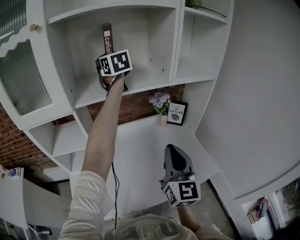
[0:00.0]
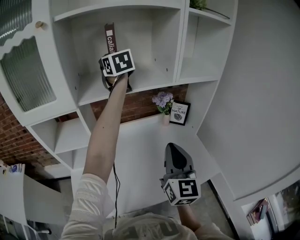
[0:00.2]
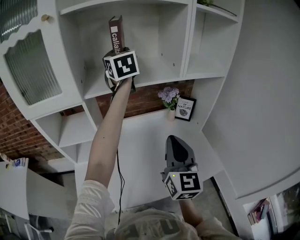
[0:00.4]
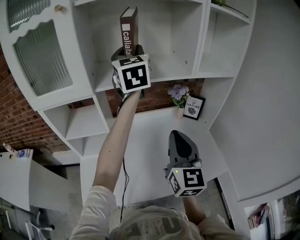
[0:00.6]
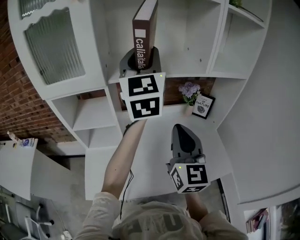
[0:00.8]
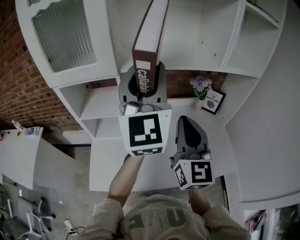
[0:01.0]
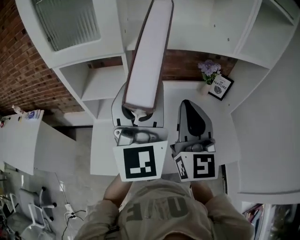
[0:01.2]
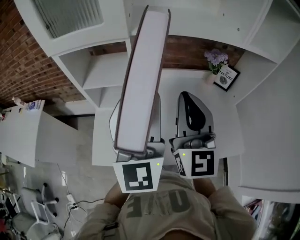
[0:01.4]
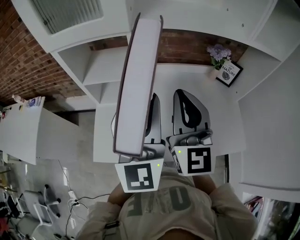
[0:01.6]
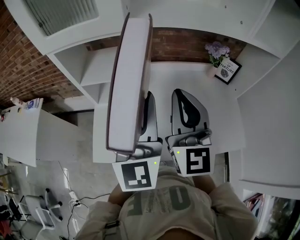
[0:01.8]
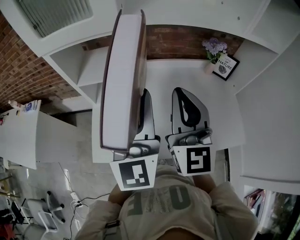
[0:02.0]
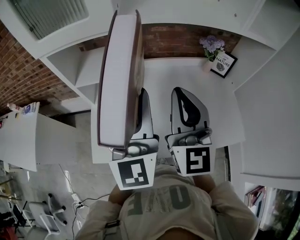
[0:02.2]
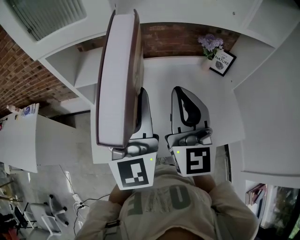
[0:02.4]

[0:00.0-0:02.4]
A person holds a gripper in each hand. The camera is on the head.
0:00.0 to 0:01.2: The right gripper travels to the left and upward by about 15 cm; the left gripper heads backward, covering roughly 35 cm, and changes its angle by some 30 degrees.
0:01.2 to 0:02.4: The left gripper is displaced downward by about 10 cm.

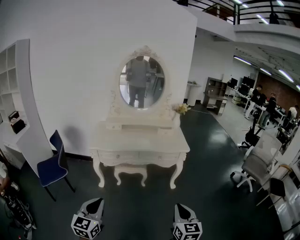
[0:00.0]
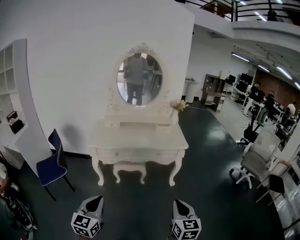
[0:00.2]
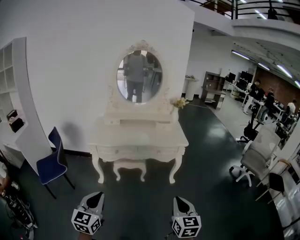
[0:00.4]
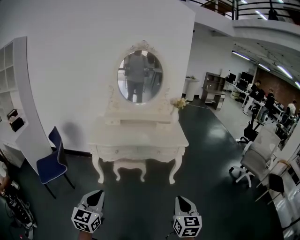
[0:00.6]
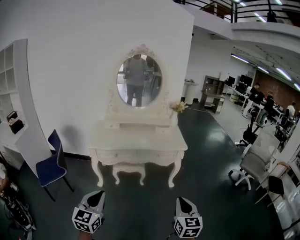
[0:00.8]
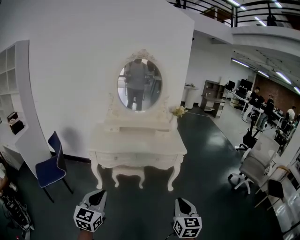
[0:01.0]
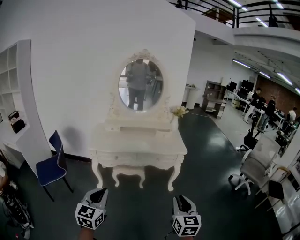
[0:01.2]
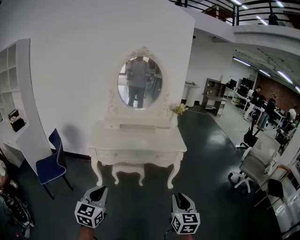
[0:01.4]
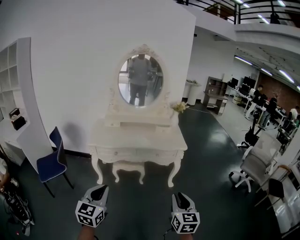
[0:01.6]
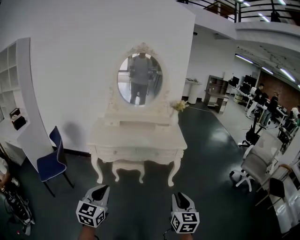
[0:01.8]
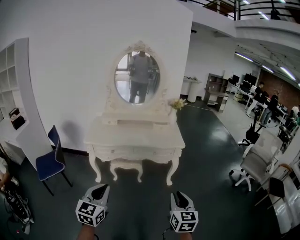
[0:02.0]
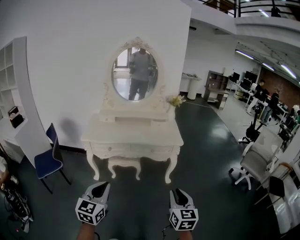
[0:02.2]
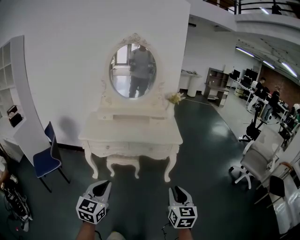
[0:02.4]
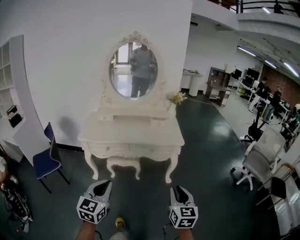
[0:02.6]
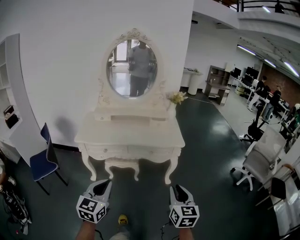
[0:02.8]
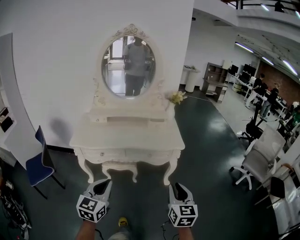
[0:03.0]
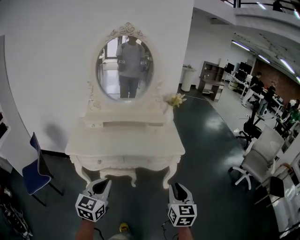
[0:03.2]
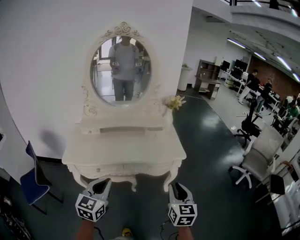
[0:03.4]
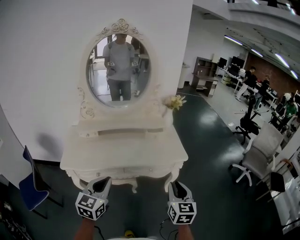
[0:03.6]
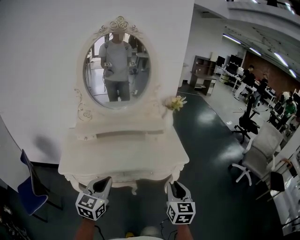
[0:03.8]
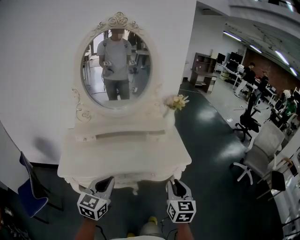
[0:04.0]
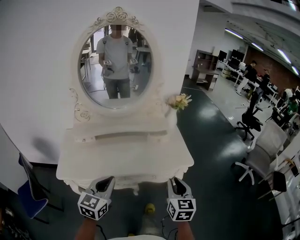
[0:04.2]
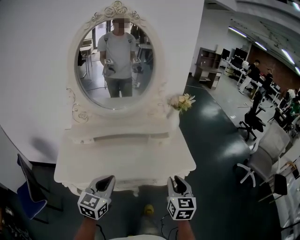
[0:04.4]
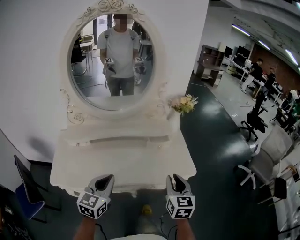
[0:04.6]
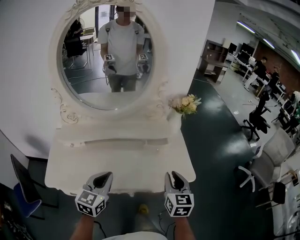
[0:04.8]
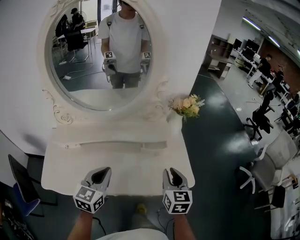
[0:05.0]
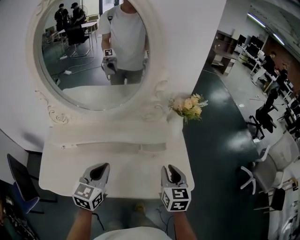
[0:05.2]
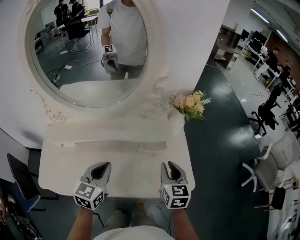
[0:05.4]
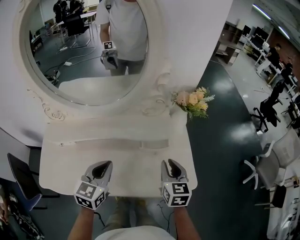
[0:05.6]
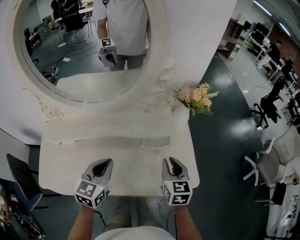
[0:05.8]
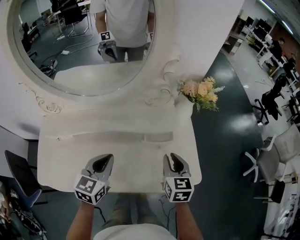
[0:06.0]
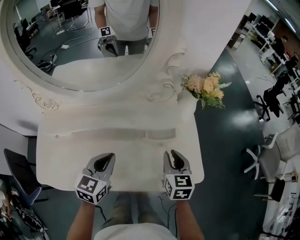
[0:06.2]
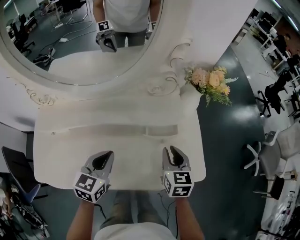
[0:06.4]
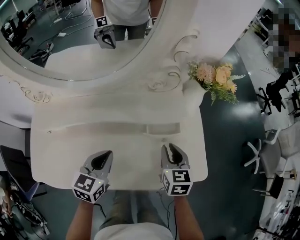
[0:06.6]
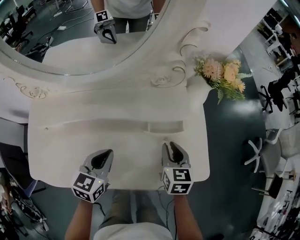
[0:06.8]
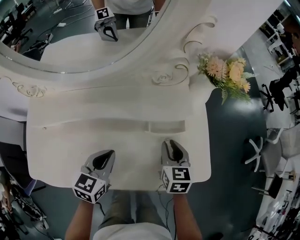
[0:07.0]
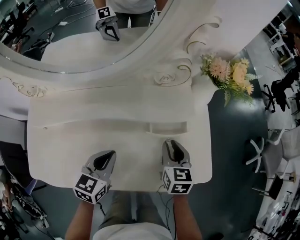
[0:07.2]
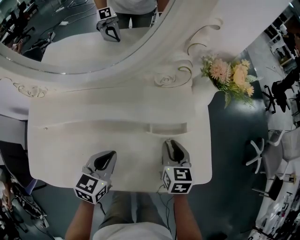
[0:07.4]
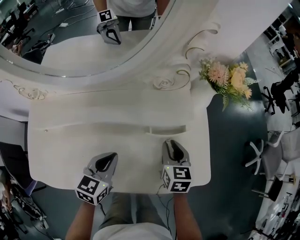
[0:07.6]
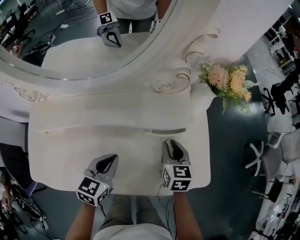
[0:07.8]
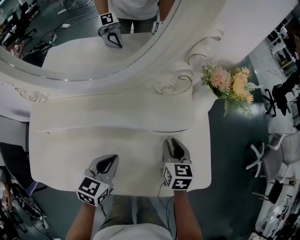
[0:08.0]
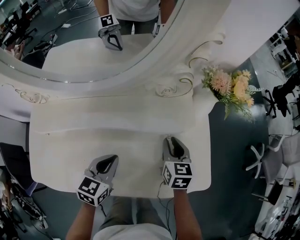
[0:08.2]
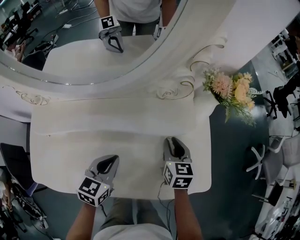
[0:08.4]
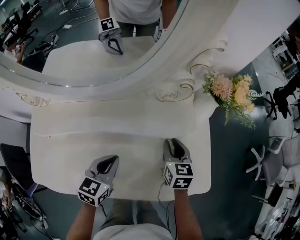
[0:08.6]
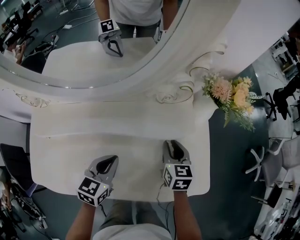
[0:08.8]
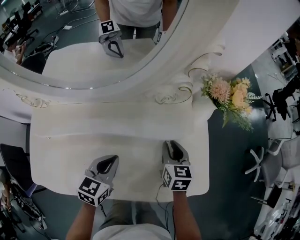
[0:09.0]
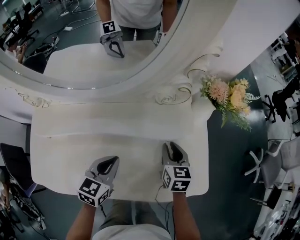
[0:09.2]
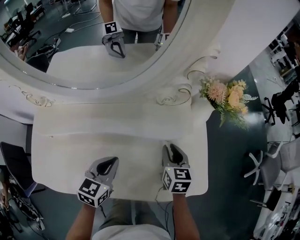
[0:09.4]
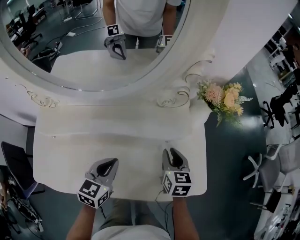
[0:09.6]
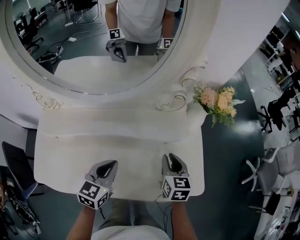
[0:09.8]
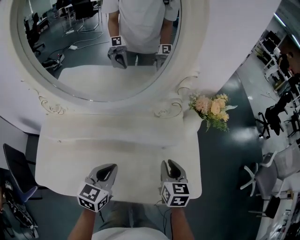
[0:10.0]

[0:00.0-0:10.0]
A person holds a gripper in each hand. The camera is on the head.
0:00.0 to 0:01.4: The left gripper changes place by approximately 5 cm.
0:01.4 to 0:02.8: The two grippers go about 20 cm forward and to the right.
0:02.8 to 0:04.2: The right gripper shifts roughly 40 cm forward and to the left; the left gripper is displaced forward by approximately 40 cm.
0:04.2 to 0:05.8: Both grippers move forward, roughly 35 cm.
0:05.8 to 0:07.2: The right gripper moves downward and forward, about 15 cm. Meanwhile the left gripper goes approximately 15 cm downward.
0:07.2 to 0:08.6: The right gripper travels forward by approximately 5 cm.
0:08.6 to 0:10.0: The right gripper travels upward and backward by some 10 cm, while the left gripper is displaced upward by roughly 10 cm.

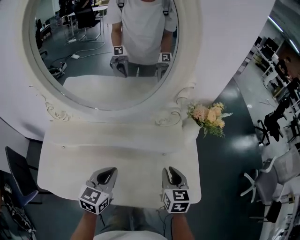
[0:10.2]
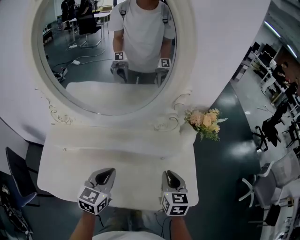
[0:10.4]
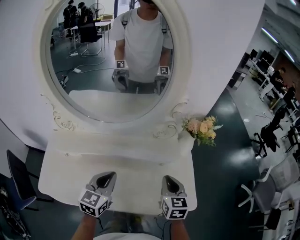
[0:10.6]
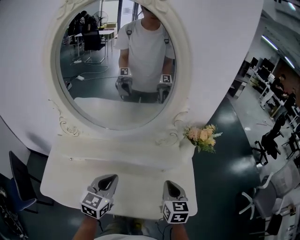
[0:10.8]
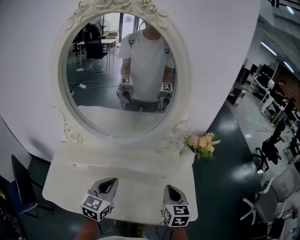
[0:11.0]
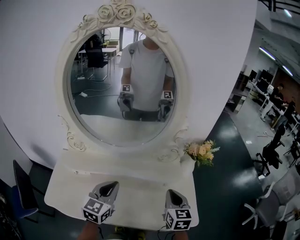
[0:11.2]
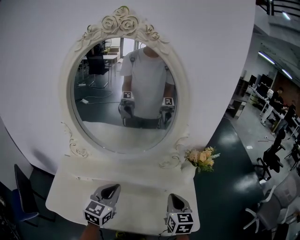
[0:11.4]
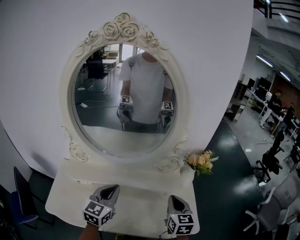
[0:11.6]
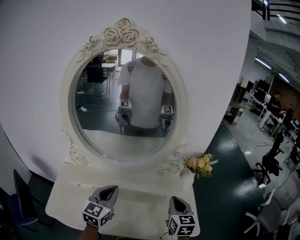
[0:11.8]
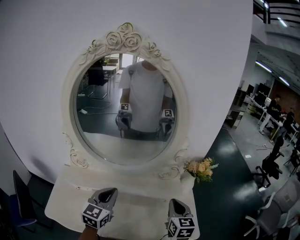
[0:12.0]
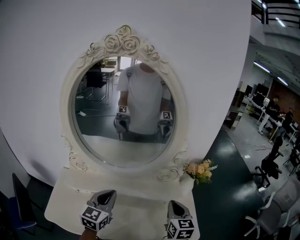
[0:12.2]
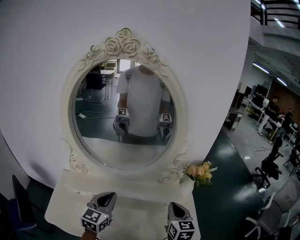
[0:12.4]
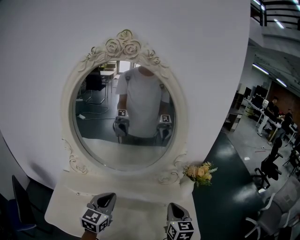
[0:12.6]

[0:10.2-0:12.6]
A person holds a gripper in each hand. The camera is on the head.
0:10.2 to 0:11.4: Both grippers move upward, approximately 15 cm.
0:11.4 to 0:12.6: The grippers stay close to where they were, moving slightly.

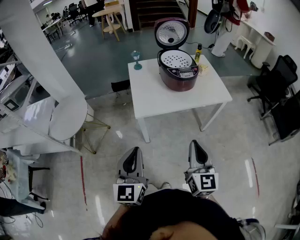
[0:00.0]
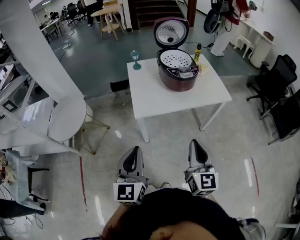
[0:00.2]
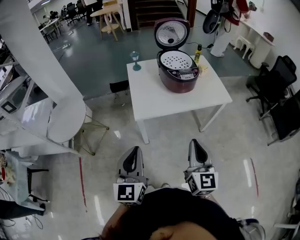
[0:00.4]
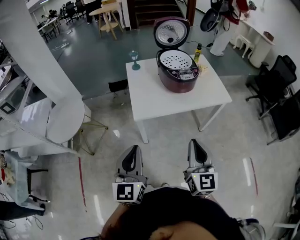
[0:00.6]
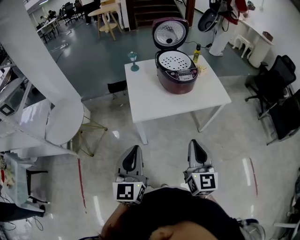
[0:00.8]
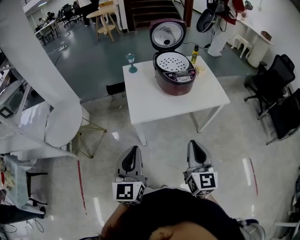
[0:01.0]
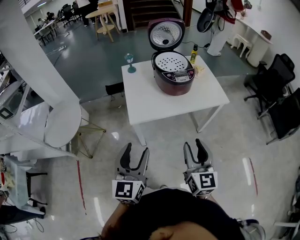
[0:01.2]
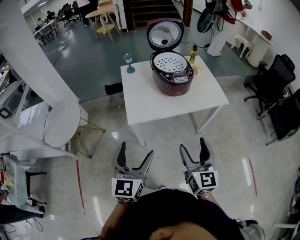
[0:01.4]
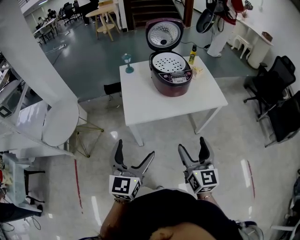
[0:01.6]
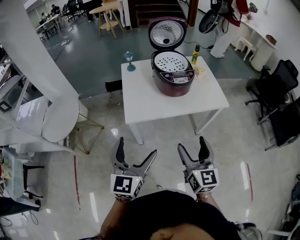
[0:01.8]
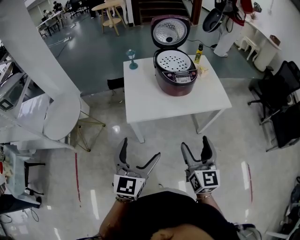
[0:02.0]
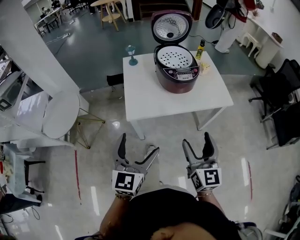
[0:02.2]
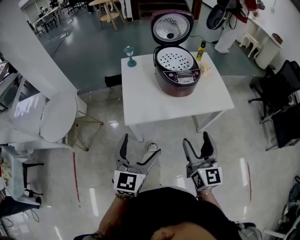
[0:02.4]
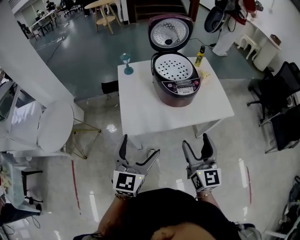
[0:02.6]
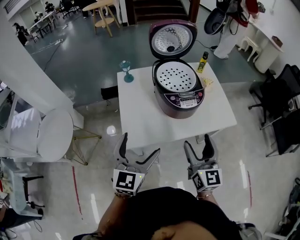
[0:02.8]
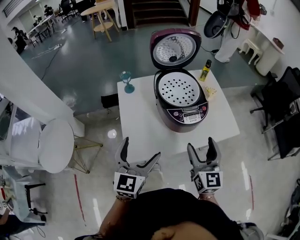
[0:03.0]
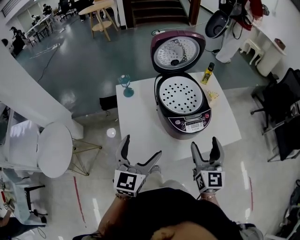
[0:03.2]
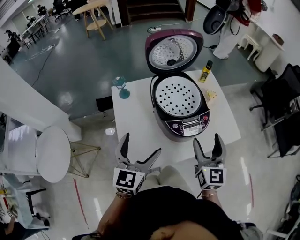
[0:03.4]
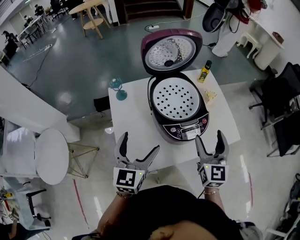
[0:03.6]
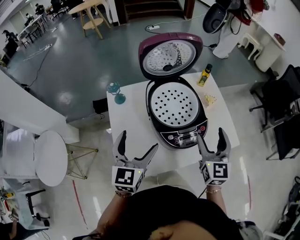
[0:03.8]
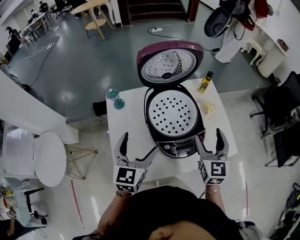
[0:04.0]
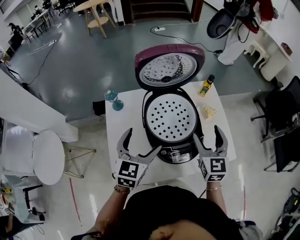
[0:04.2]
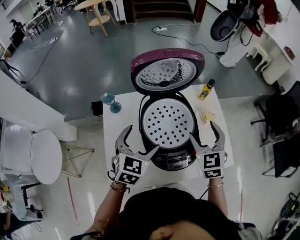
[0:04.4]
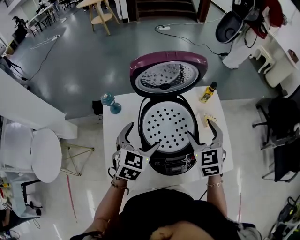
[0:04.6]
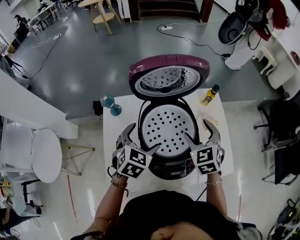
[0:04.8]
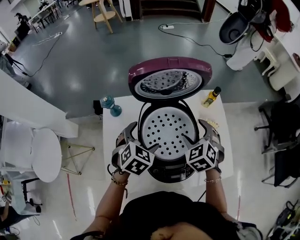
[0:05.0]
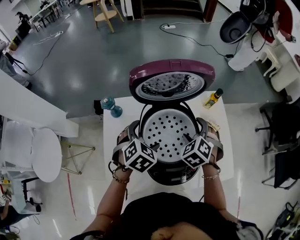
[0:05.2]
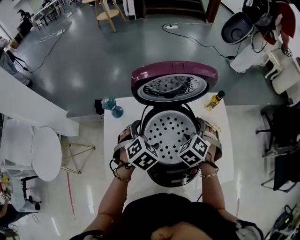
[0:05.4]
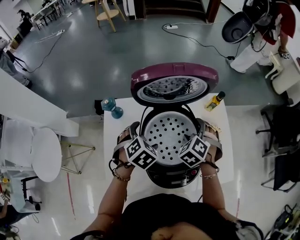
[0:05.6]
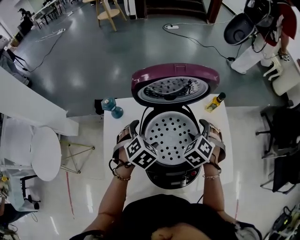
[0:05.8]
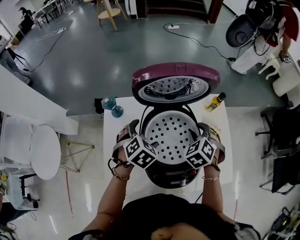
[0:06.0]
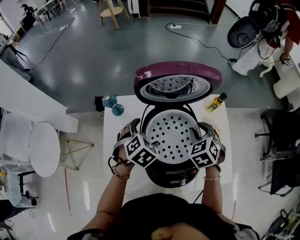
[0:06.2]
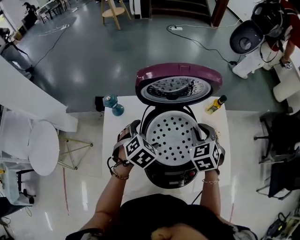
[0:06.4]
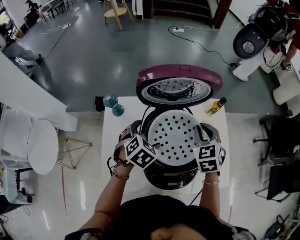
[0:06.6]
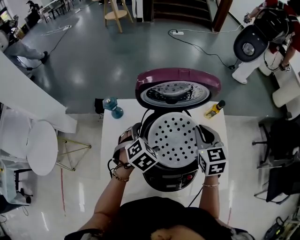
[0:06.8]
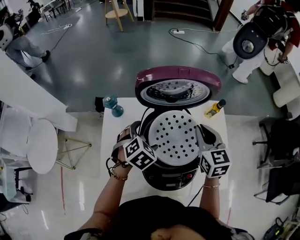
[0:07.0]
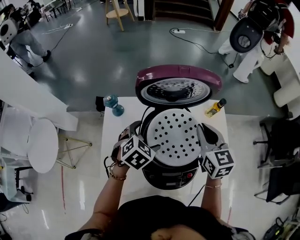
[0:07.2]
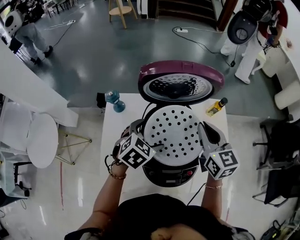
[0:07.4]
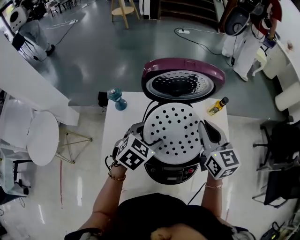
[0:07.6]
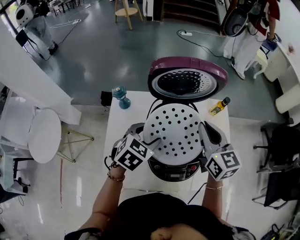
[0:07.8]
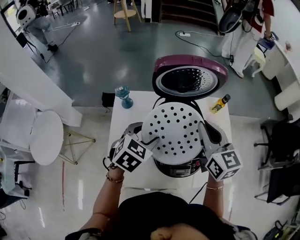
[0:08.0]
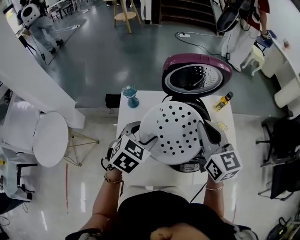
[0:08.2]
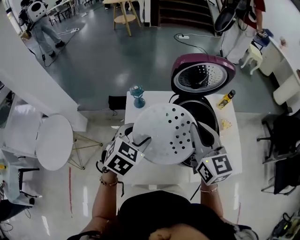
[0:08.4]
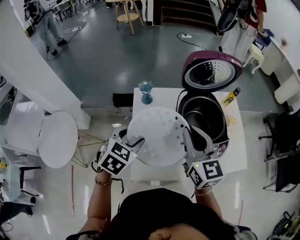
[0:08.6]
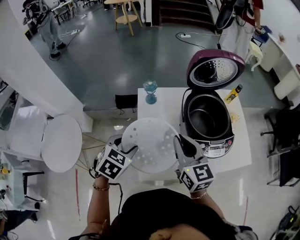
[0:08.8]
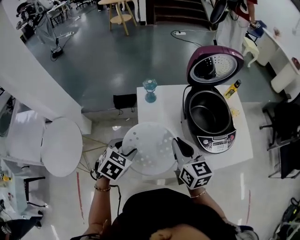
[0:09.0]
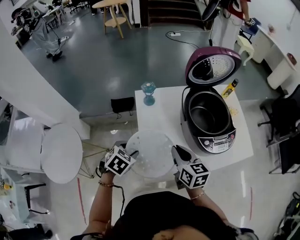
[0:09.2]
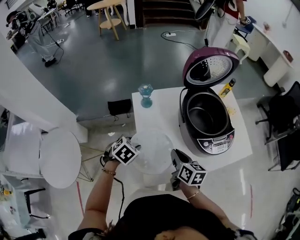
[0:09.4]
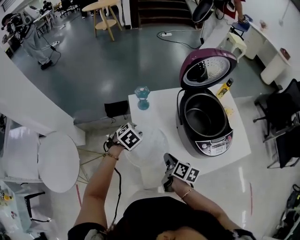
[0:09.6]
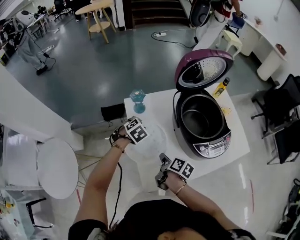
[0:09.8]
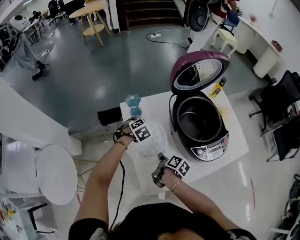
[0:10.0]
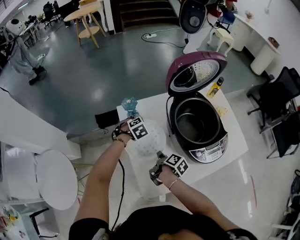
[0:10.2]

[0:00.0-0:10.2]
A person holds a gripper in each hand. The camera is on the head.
0:00.0 to 0:01.4: Both grippers move forward, approximately 5 cm. The right gripper opens its fingers. Meanwhile the left gripper opens its fingers.
0:01.4 to 0:03.0: The two grippers go approximately 30 cm forward.
0:03.0 to 0:04.4: Both grippers travel together forward, some 25 cm. The left gripper rotates approximately 20 degrees; the right gripper swivels some 30 degrees.
0:04.4 to 0:05.8: Both grippers travel together forward and downward, roughly 15 cm. The right gripper changes its angle by roughly 40 degrees, while the left gripper turns by some 30 degrees.
0:05.8 to 0:07.2: The right gripper is displaced upward by about 10 cm, tilts its fingers about 30 degrees upward, and closes.
0:07.2 to 0:08.8: The two grippers go approximately 35 cm to the left and backward. The left gripper closes up.
0:08.8 to 0:10.2: The right gripper shifts roughly 25 cm downward, and twists roughly 80 degrees clockwise, seen from behind; the left gripper travels forward and downward by roughly 30 cm, and swivels about 40 degrees.
